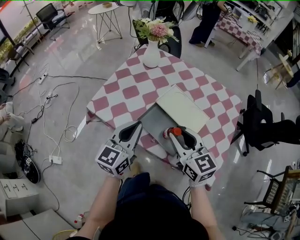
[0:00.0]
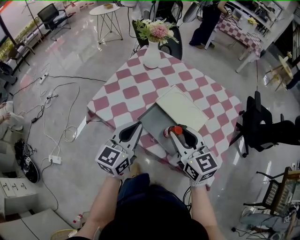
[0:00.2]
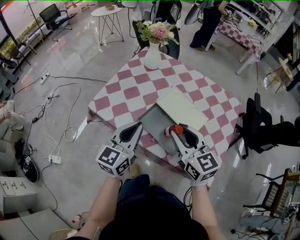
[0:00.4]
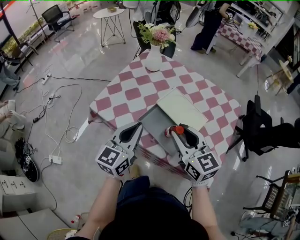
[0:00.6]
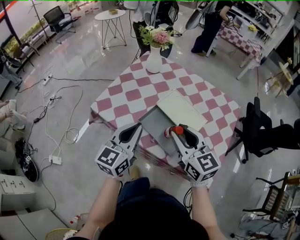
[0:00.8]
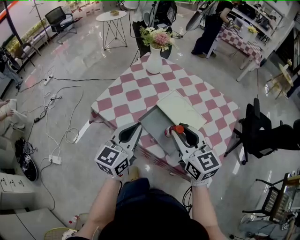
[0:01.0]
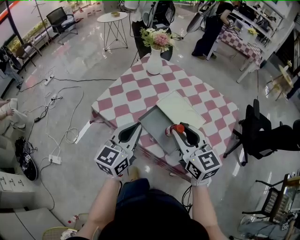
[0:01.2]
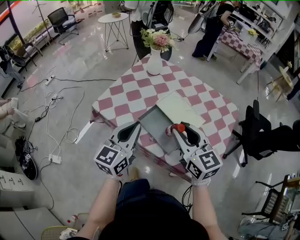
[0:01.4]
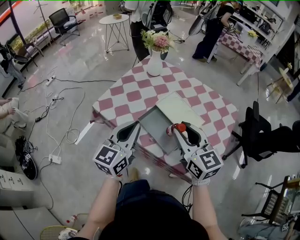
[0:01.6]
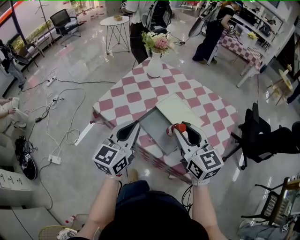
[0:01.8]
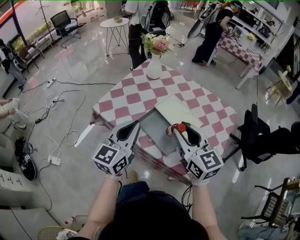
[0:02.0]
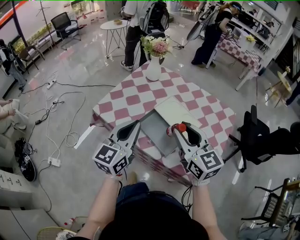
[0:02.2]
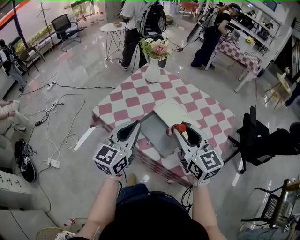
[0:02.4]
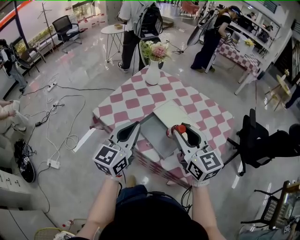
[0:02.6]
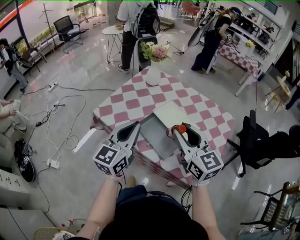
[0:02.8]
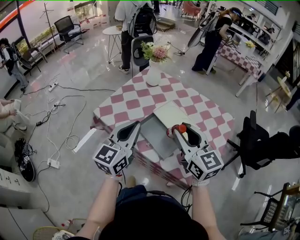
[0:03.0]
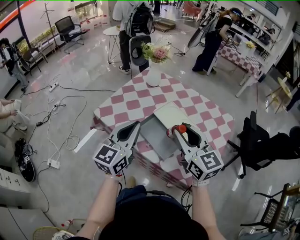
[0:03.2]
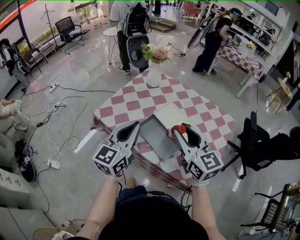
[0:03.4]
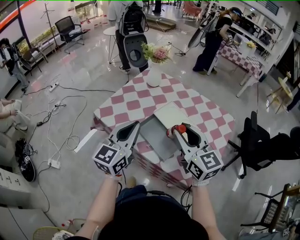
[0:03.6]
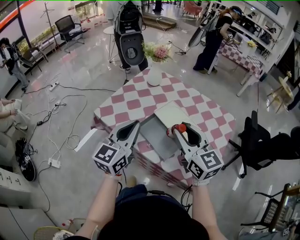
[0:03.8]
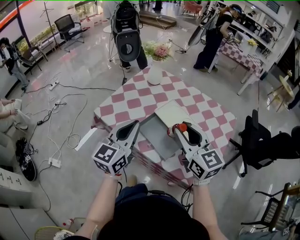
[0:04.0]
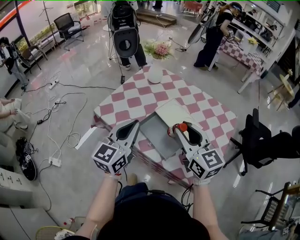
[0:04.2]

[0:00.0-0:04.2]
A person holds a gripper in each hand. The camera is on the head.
0:00.0 to 0:01.4: The right gripper heads upward, covering some 5 cm. The left gripper changes place by about 5 cm.
0:01.4 to 0:04.2: The grippers move only a little.

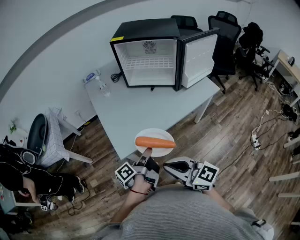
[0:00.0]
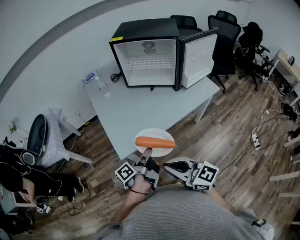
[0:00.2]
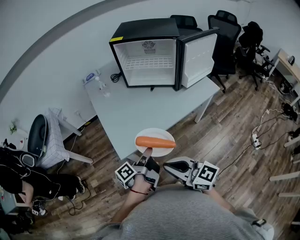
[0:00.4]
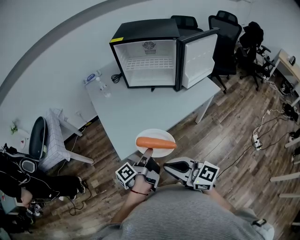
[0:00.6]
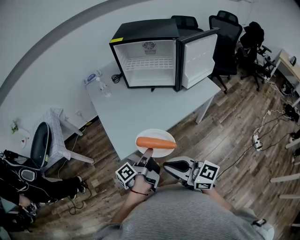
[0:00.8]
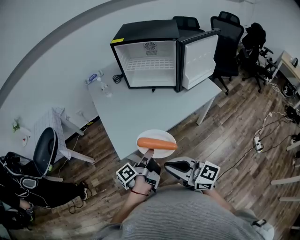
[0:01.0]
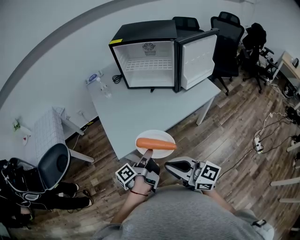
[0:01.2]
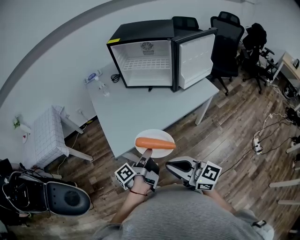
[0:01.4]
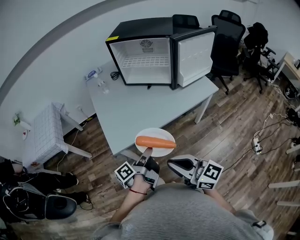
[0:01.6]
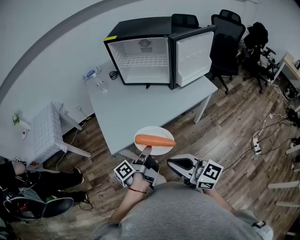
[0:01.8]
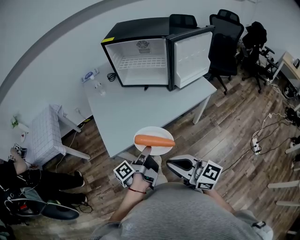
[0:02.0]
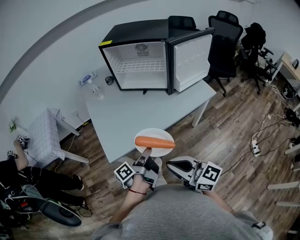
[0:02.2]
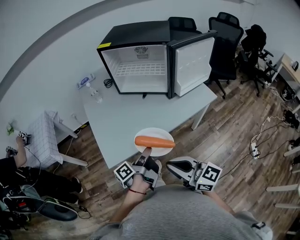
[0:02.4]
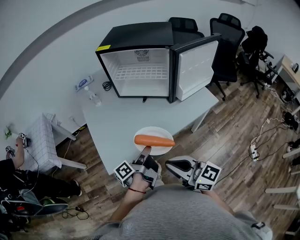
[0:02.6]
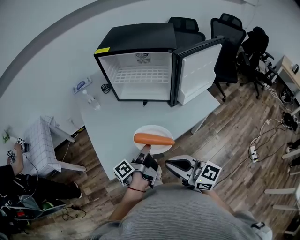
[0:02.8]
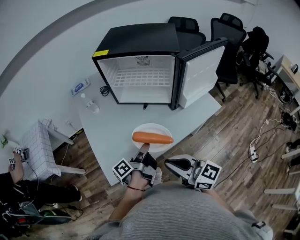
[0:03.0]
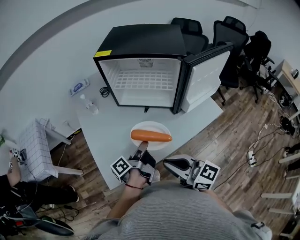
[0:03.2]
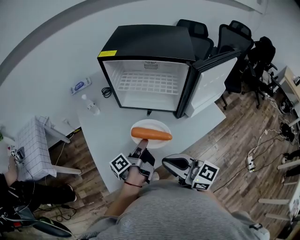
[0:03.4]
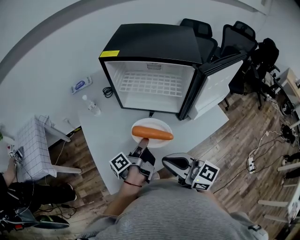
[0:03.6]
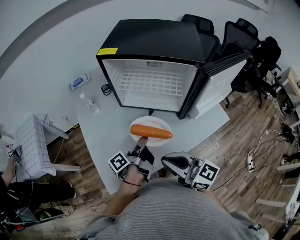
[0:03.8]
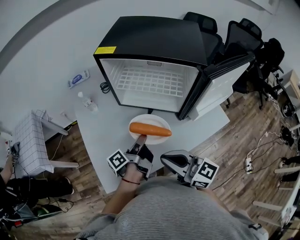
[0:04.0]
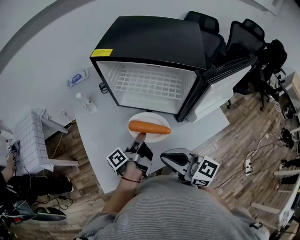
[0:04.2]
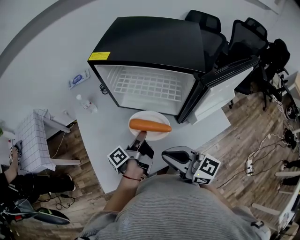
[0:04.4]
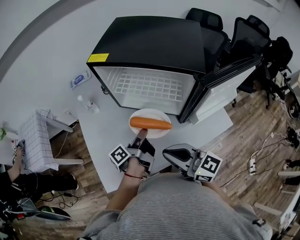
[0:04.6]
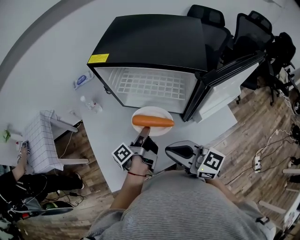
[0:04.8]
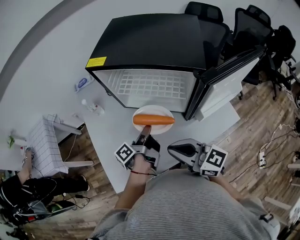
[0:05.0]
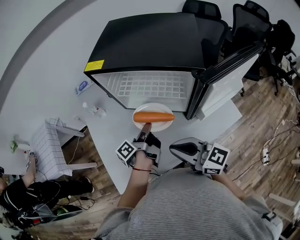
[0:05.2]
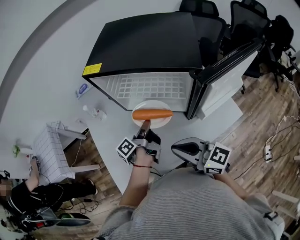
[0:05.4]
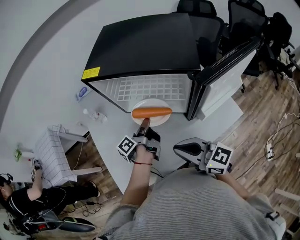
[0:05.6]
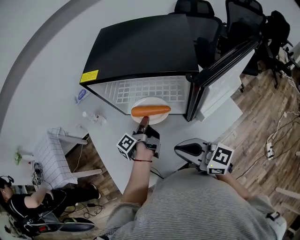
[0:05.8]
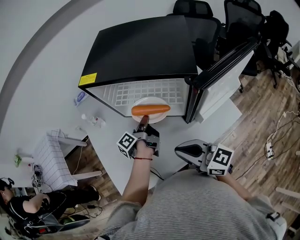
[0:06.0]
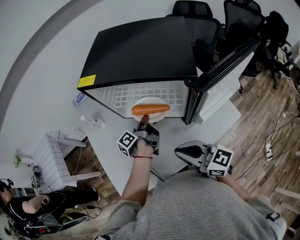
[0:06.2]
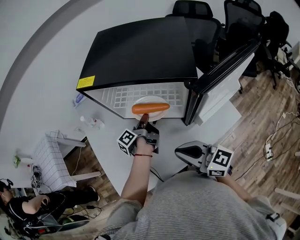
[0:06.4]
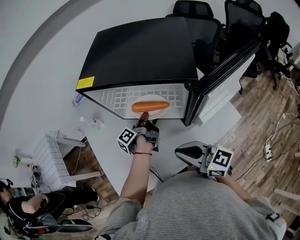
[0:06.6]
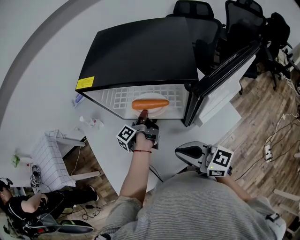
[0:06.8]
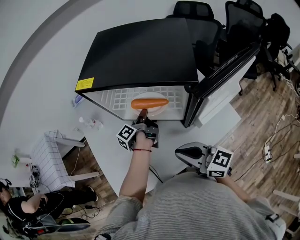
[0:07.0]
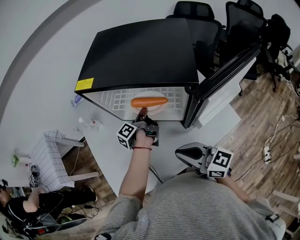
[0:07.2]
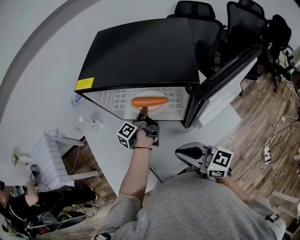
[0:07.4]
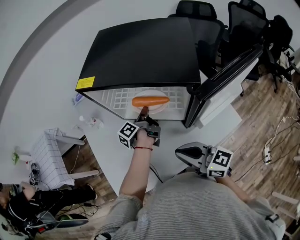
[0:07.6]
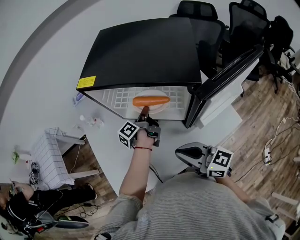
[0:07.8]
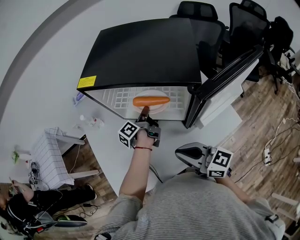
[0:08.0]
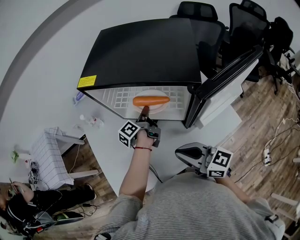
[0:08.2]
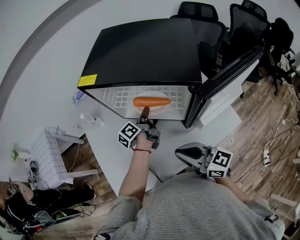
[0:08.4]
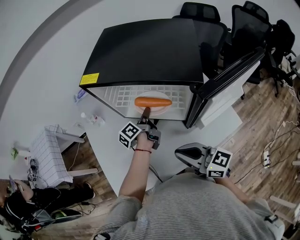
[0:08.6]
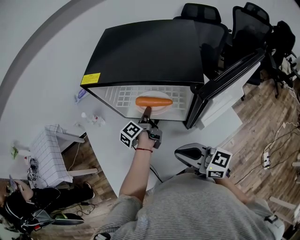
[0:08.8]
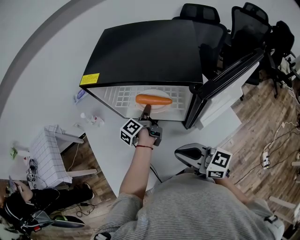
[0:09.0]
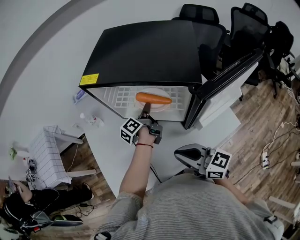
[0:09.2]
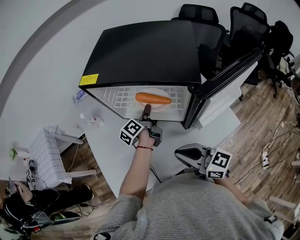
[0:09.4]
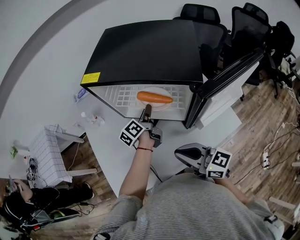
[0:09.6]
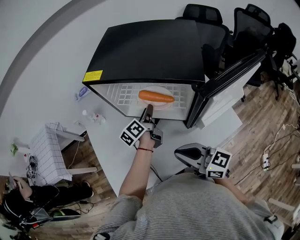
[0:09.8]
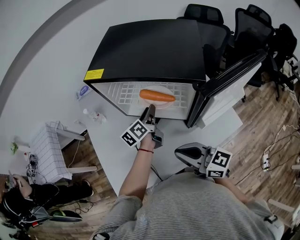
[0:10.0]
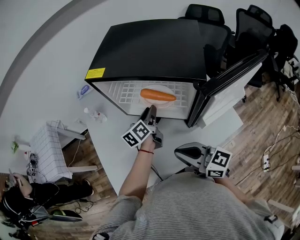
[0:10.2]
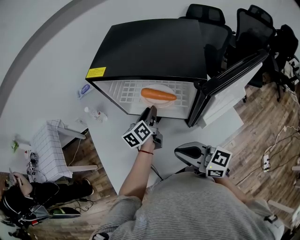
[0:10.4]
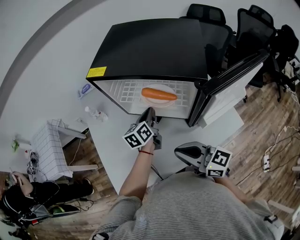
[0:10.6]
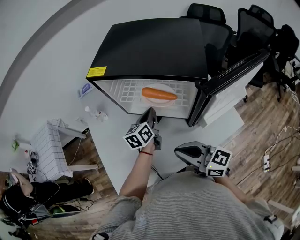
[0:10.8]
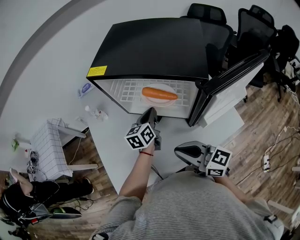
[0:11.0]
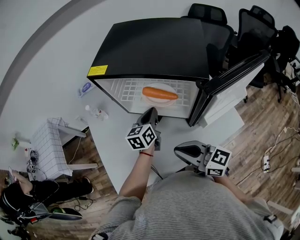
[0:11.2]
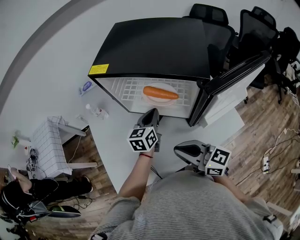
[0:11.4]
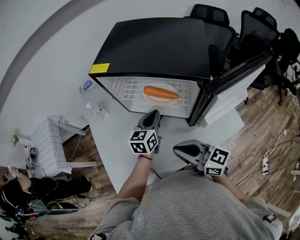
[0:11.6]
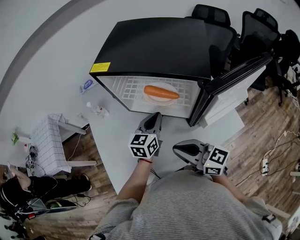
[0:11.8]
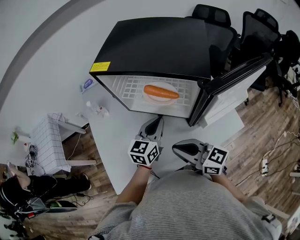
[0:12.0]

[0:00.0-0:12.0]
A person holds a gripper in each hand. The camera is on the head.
0:00.0 to 0:01.6: The right gripper shifts by some 10 cm.
0:01.6 to 0:03.0: The right gripper moves roughly 20 cm.
0:03.0 to 0:04.4: The right gripper moves about 15 cm.
0:04.4 to 0:06.0: The right gripper shifts by some 5 cm.

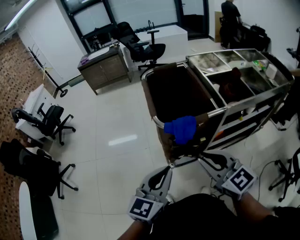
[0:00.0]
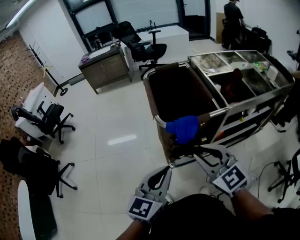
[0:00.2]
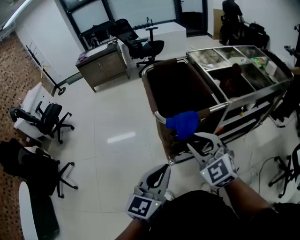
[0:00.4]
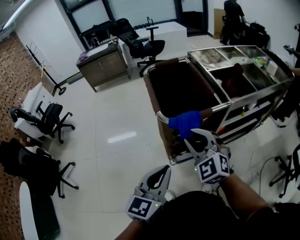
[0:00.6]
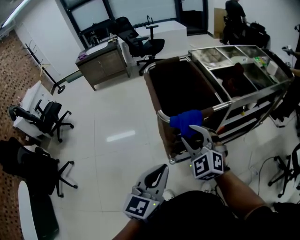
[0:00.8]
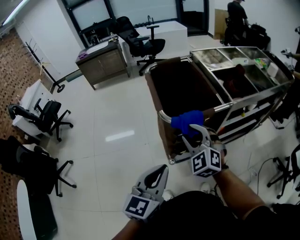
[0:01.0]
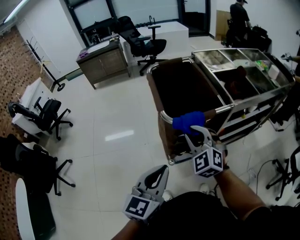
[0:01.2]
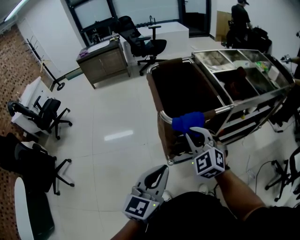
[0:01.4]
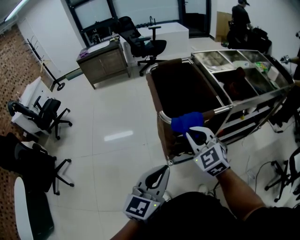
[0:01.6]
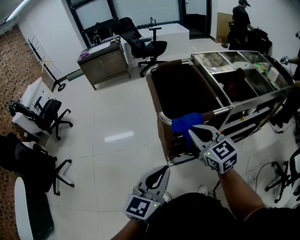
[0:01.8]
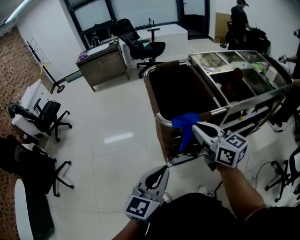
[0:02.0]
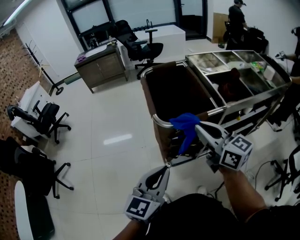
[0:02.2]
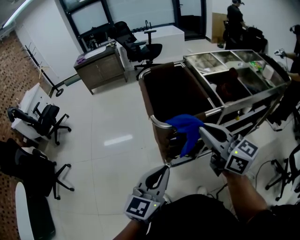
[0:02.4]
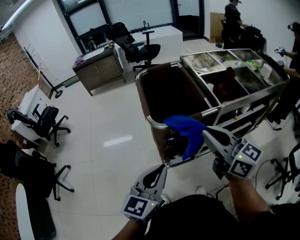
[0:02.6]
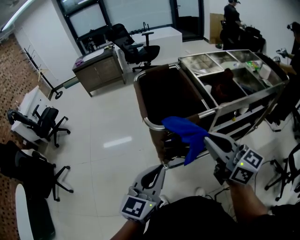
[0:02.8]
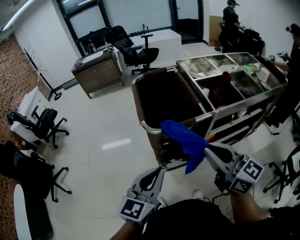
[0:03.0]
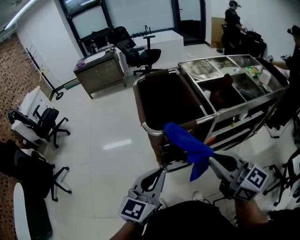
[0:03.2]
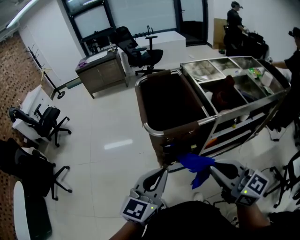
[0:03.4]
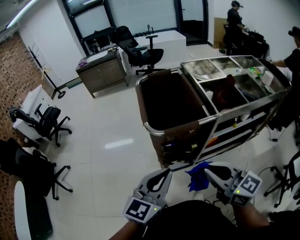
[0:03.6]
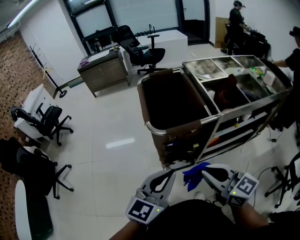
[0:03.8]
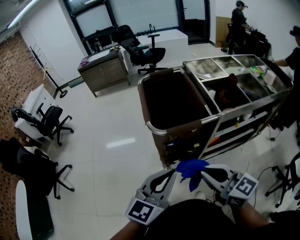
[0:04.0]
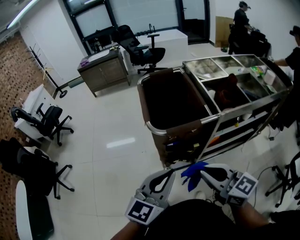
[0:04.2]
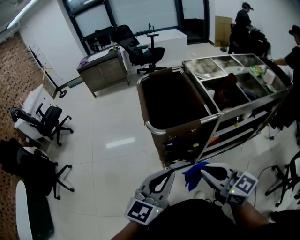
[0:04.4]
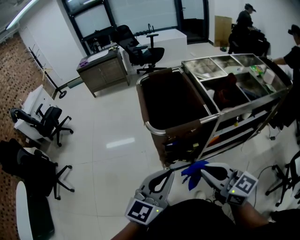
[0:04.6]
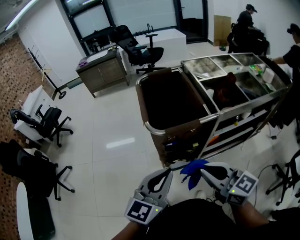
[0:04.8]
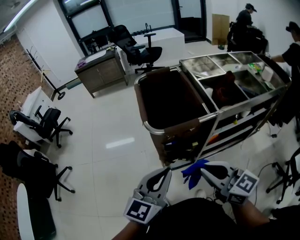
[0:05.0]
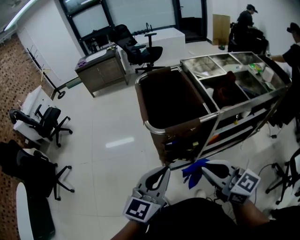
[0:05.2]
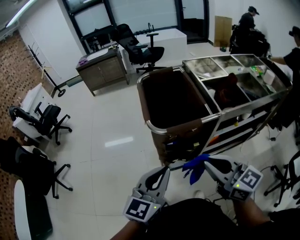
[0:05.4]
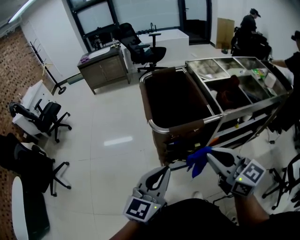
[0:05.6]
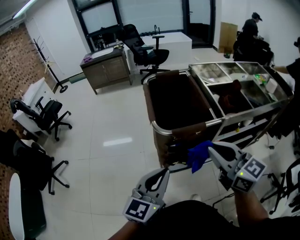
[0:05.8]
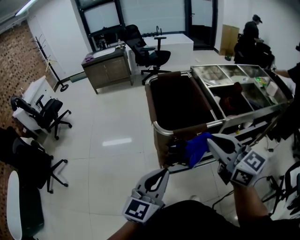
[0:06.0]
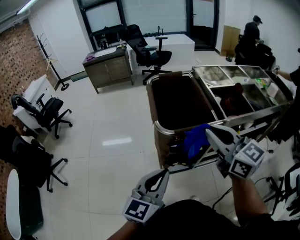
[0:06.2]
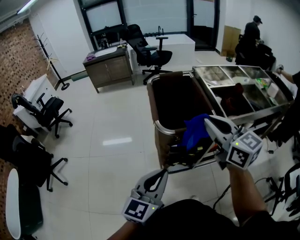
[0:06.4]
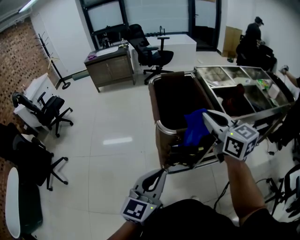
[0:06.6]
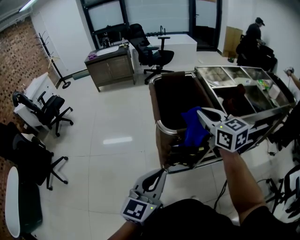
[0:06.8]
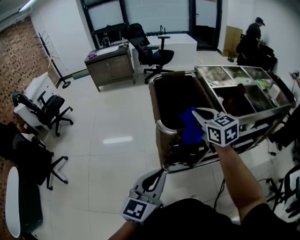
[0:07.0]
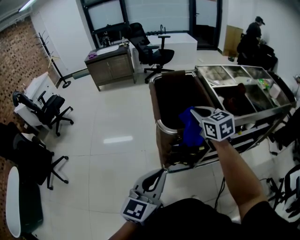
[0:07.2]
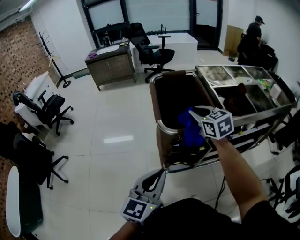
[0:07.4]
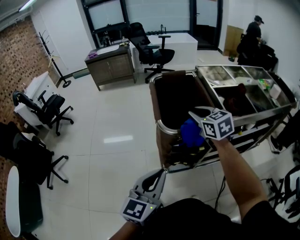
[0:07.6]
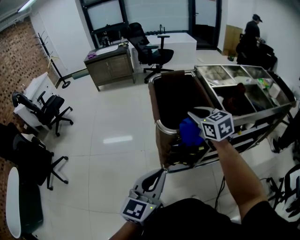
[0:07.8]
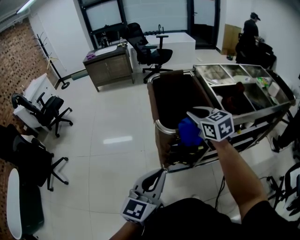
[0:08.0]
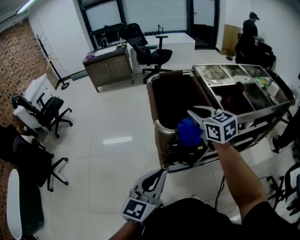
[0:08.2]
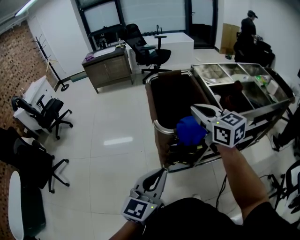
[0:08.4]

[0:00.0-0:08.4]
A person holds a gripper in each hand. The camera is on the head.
0:00.0 to 0:01.4: The right gripper moves forward, to the left and downward, roughly 15 cm, turns by about 40 degrees, and opens, then closes once more.
0:01.4 to 0:02.8: The left gripper is displaced to the right by some 5 cm. Meanwhile the right gripper shifts some 20 cm upward, to the right and backward, and twists some 50 degrees clockwise, seen from behind.
0:02.8 to 0:04.2: The right gripper moves downward and backward, about 10 cm.
0:04.2 to 0:05.6: The right gripper ends up roughly 5 cm from where it was.
0:05.6 to 0:07.0: The right gripper goes some 20 cm forward.
0:07.0 to 0:08.4: The right gripper shifts by some 5 cm.
